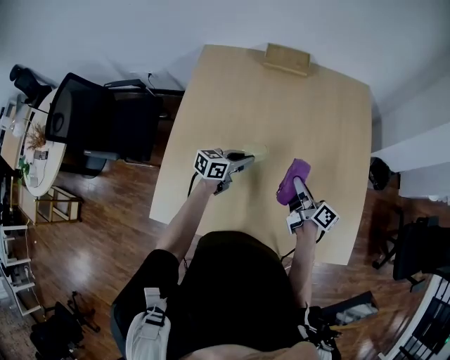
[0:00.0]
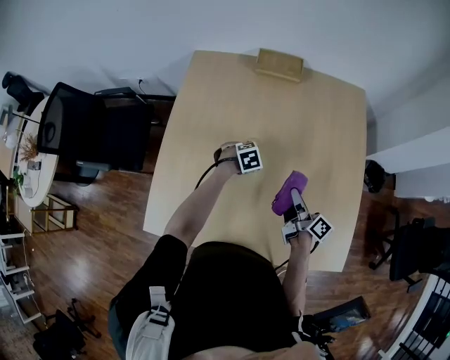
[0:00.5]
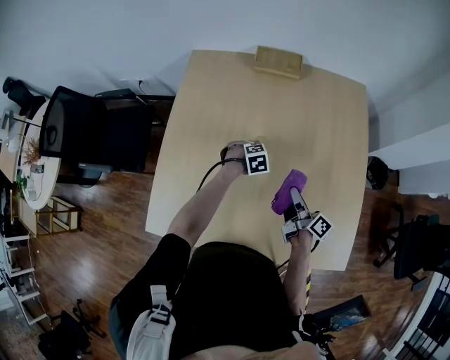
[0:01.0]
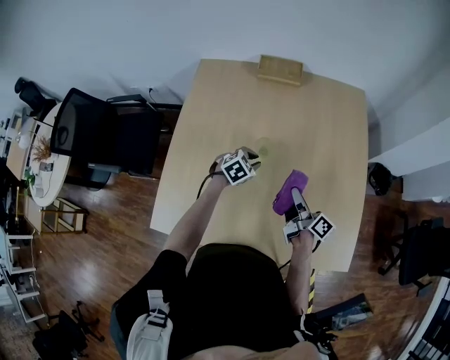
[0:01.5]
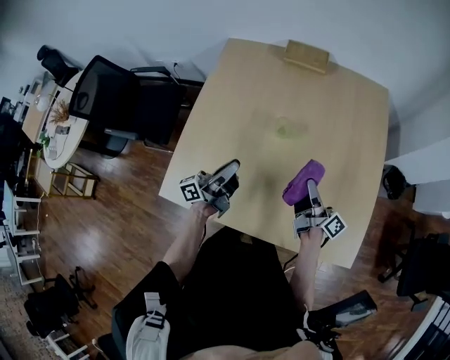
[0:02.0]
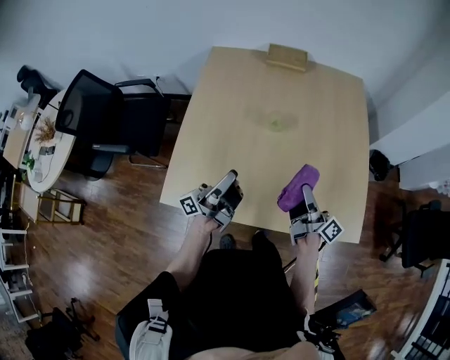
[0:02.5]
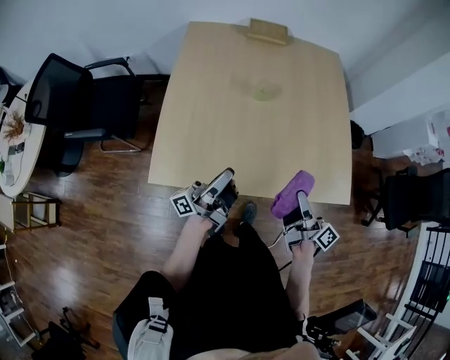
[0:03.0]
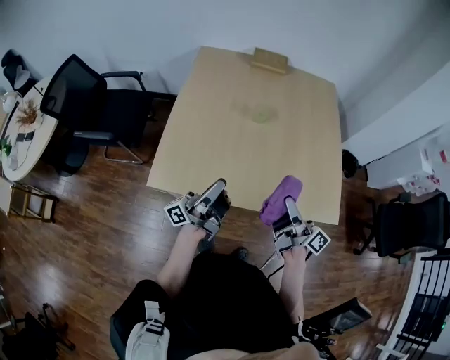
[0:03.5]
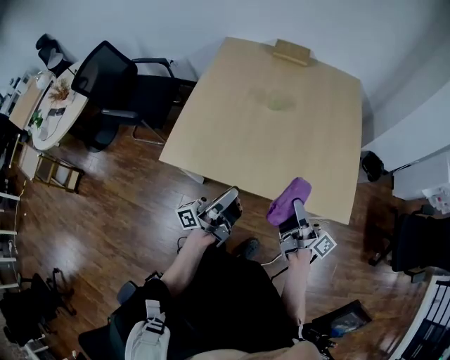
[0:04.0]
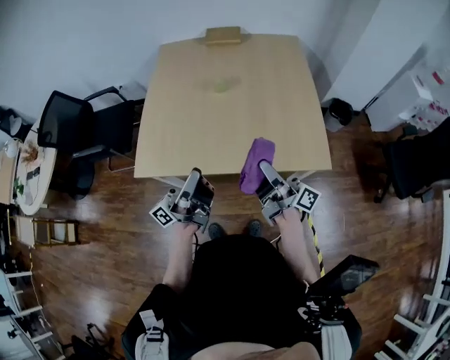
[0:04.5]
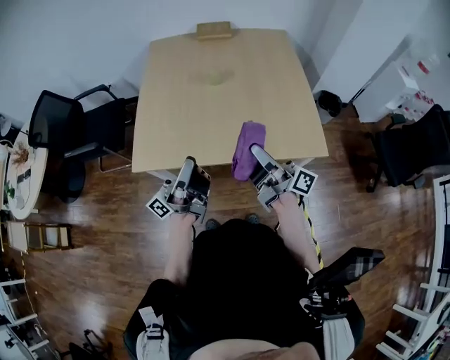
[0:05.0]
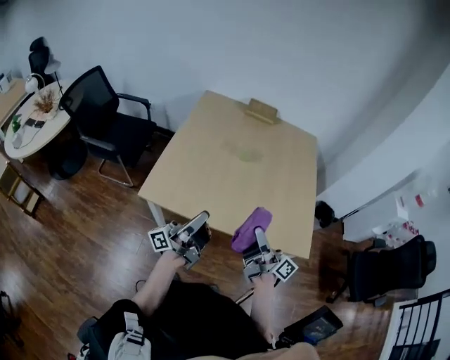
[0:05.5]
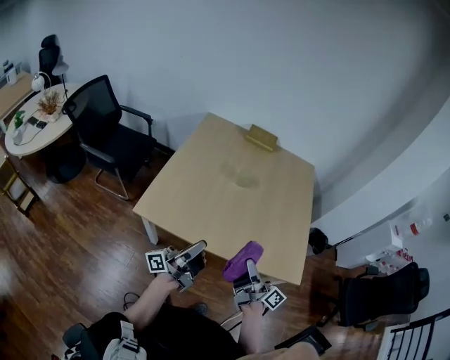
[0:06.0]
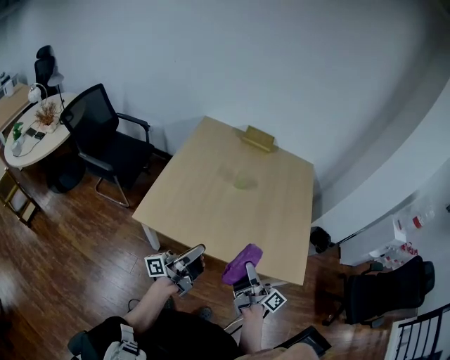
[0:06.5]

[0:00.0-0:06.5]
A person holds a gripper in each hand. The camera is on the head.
0:00.0 to 0:02.0: The right gripper shifts by roughly 5 cm; the left gripper shifts some 15 cm upward and backward, and points its fingers some 40 degrees further upward.
0:02.0 to 0:04.5: The left gripper heads backward, covering some 30 cm, and turns by some 20 degrees, while the right gripper is displaced backward and upward by some 30 cm.
0:04.5 to 0:06.5: The grippers make only small movements.

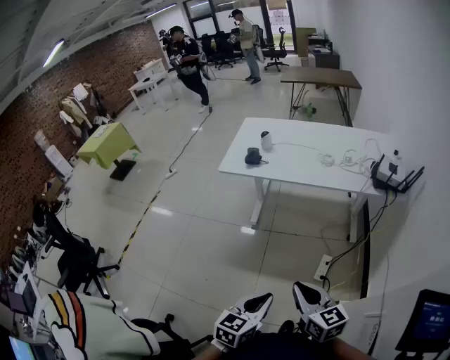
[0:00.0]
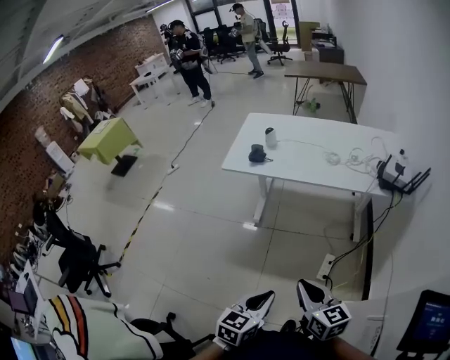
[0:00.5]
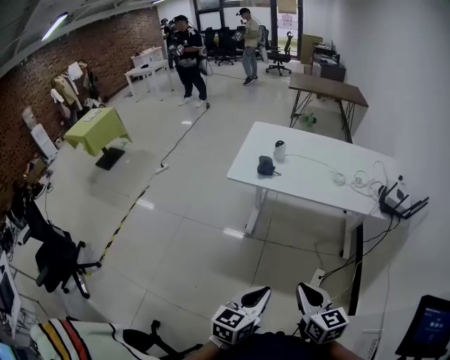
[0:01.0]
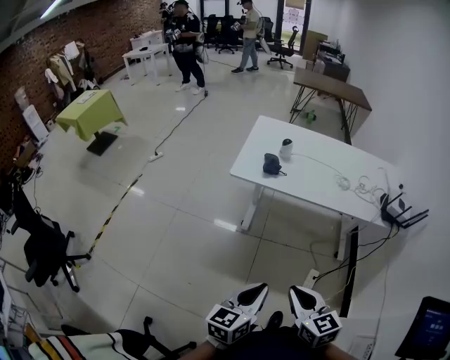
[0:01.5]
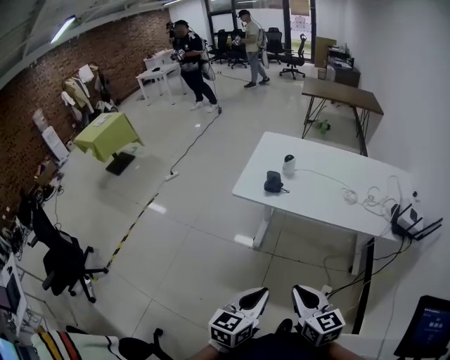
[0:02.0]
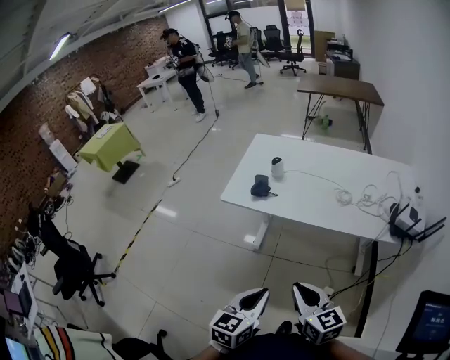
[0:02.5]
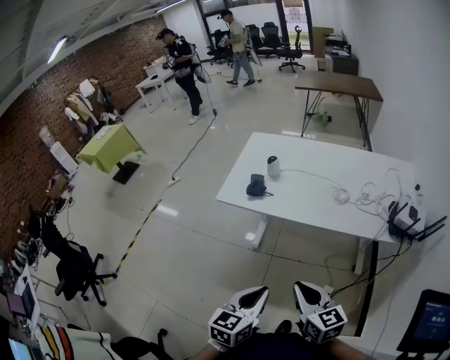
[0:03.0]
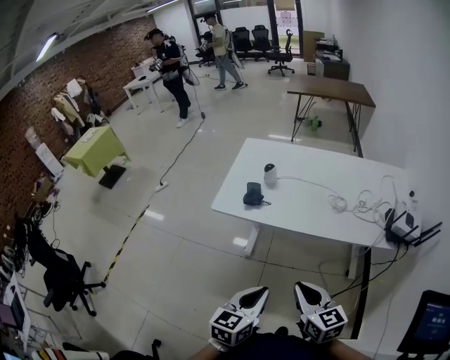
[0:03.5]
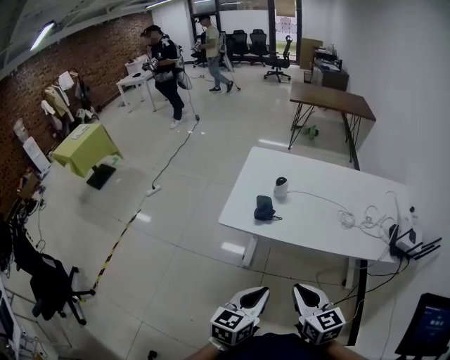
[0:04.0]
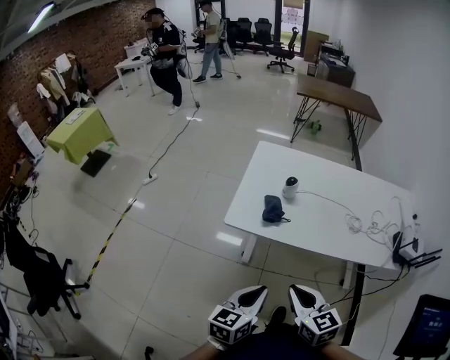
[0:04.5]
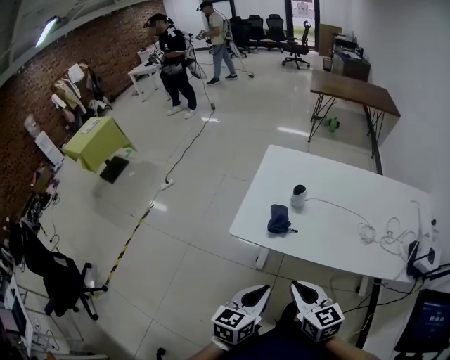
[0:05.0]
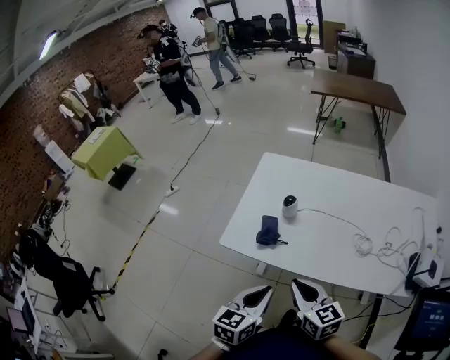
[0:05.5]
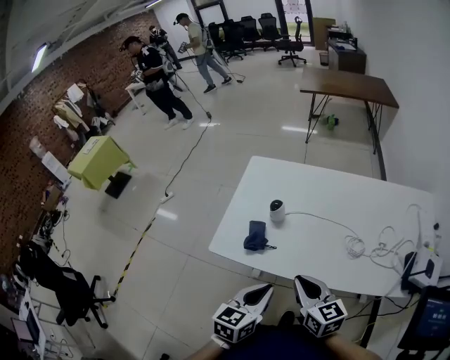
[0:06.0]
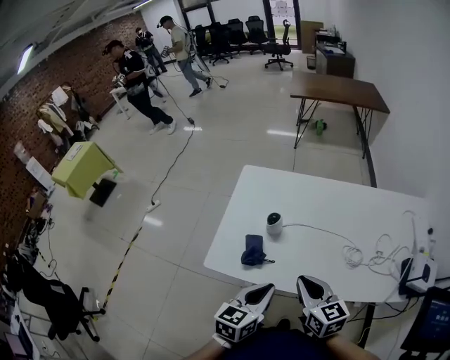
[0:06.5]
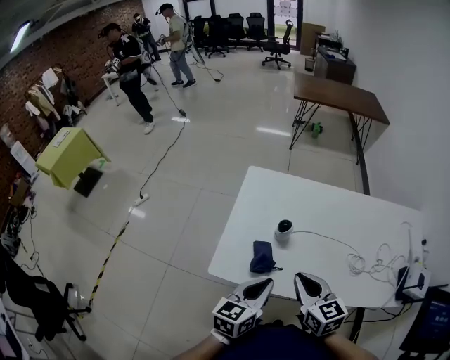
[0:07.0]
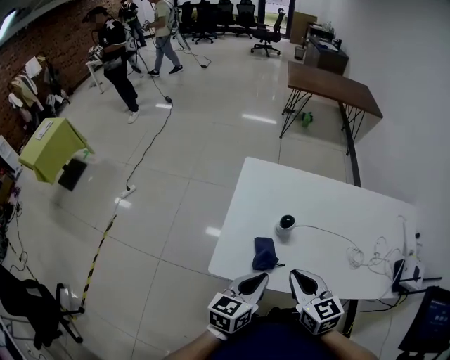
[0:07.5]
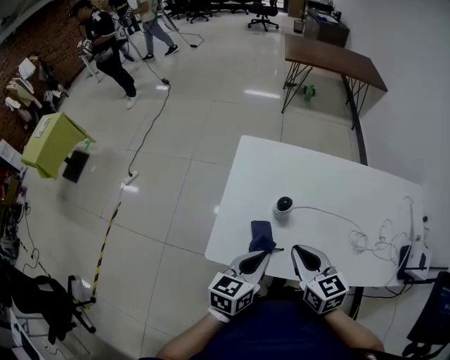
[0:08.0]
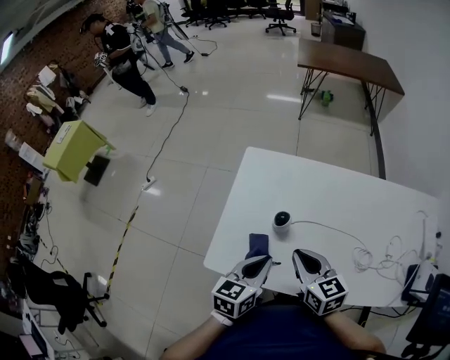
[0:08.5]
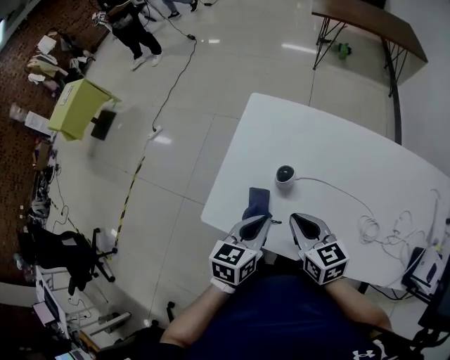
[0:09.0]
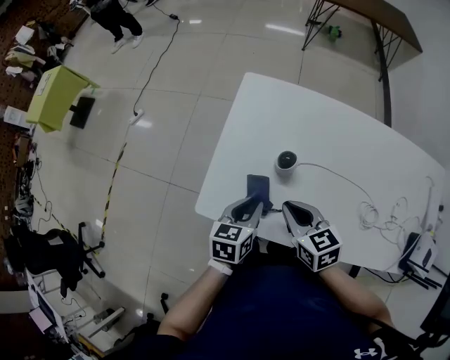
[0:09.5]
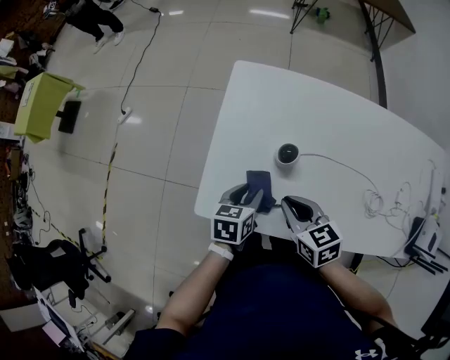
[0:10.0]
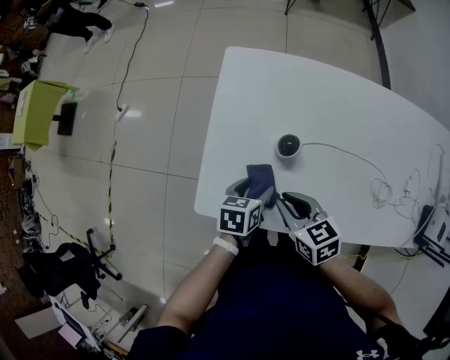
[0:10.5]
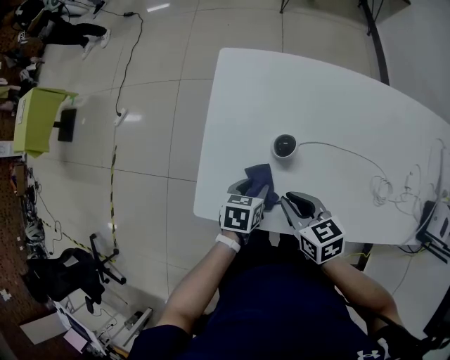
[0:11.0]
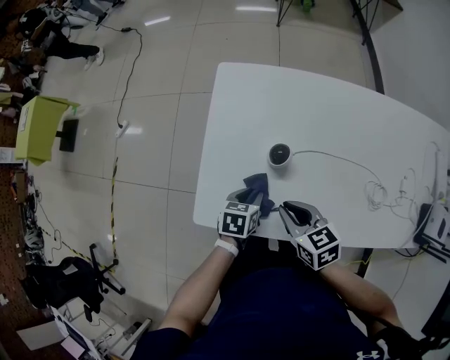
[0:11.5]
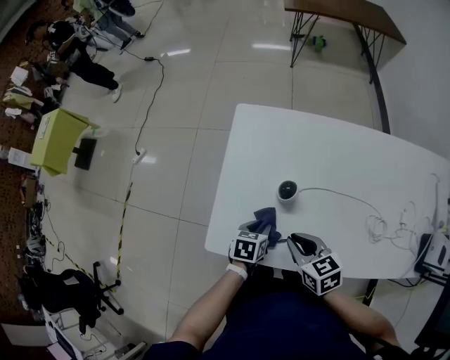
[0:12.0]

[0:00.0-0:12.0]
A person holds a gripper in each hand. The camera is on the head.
0:00.0 to 0:02.0: Both grippers travel together forward and to the left, some 20 cm.
0:02.0 to 0:04.0: The two grippers go some 15 cm forward.
0:04.0 to 0:06.0: The left gripper travels forward and to the right by some 20 cm. Meanwhile the right gripper is displaced forward by some 20 cm.
0:06.0 to 0:08.0: Both grippers travel together forward and to the left, some 15 cm.
0:08.0 to 0:10.0: The right gripper goes approximately 10 cm downward. The left gripper travels downward and forward by some 15 cm, swivels some 30 degrees, and opens up.
0:10.0 to 0:12.0: The left gripper moves downward, some 5 cm, and opens, then closes again.

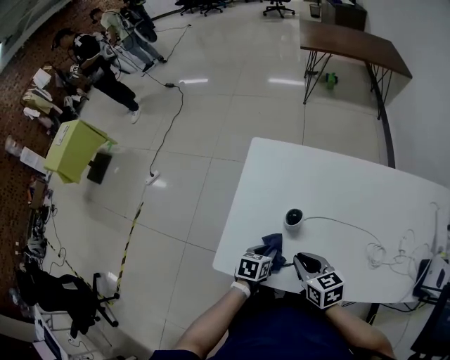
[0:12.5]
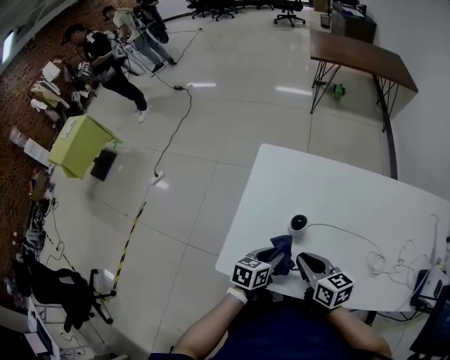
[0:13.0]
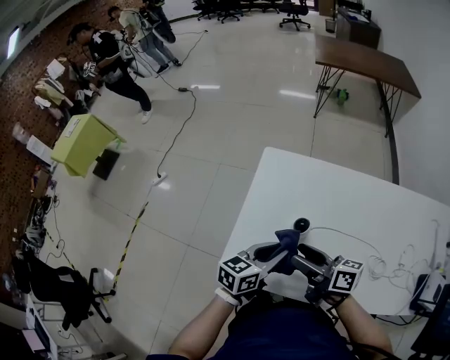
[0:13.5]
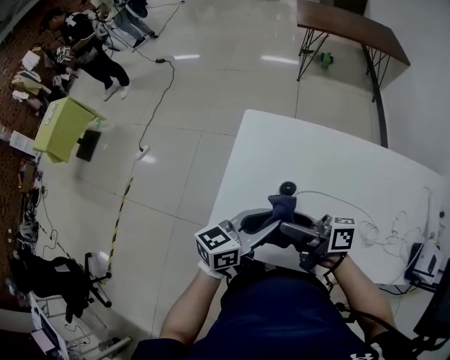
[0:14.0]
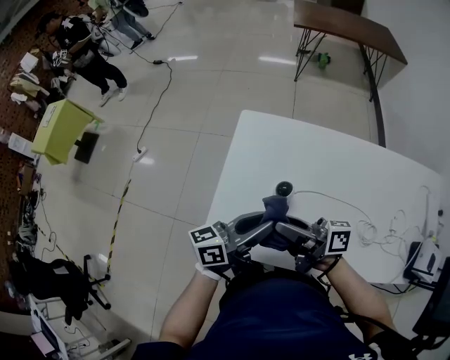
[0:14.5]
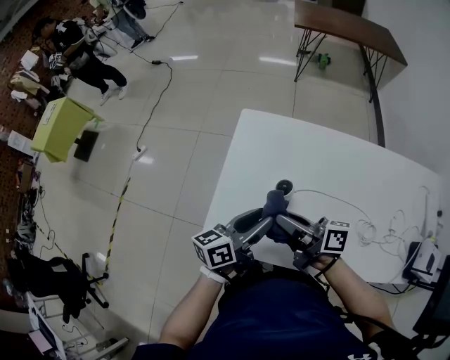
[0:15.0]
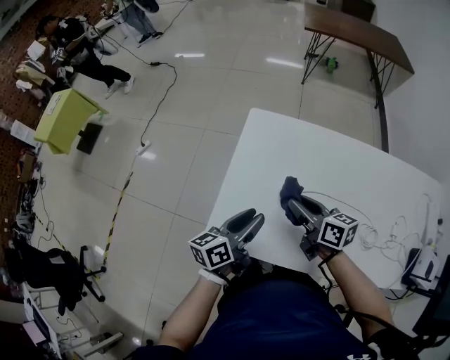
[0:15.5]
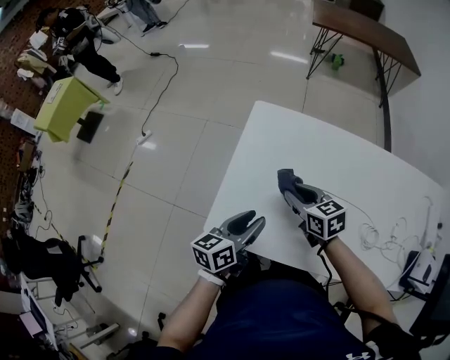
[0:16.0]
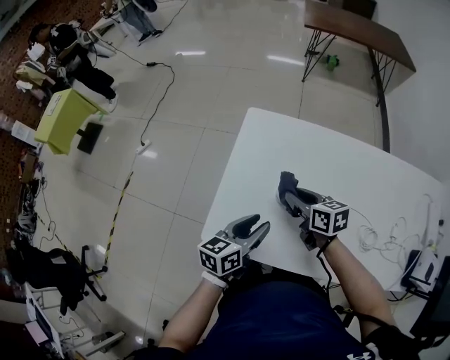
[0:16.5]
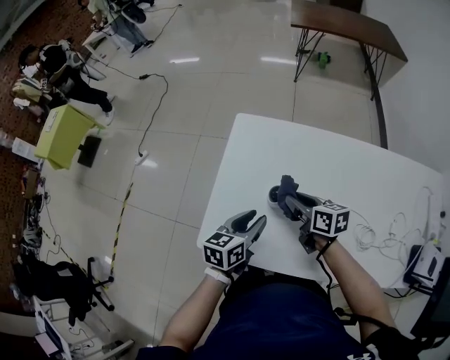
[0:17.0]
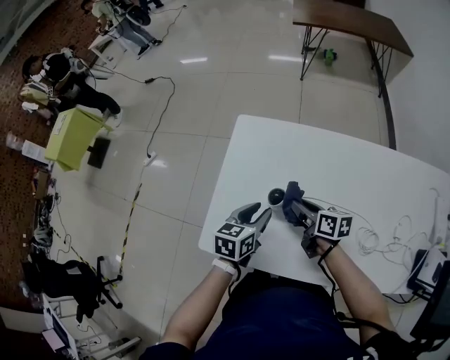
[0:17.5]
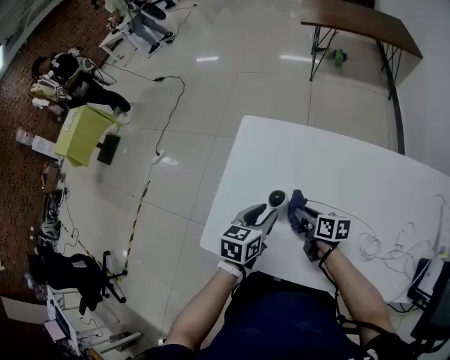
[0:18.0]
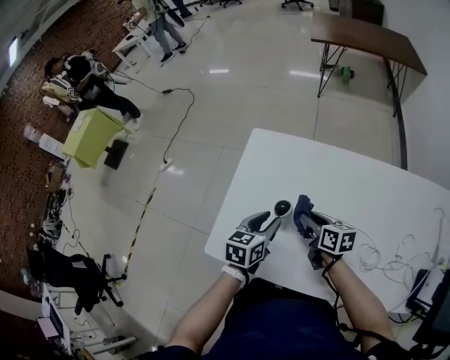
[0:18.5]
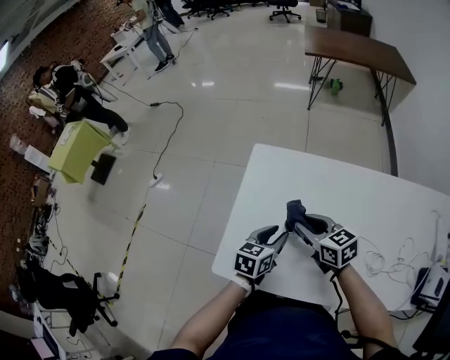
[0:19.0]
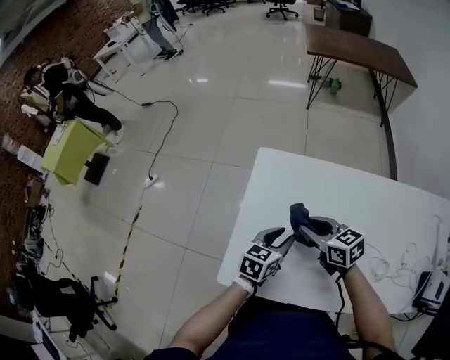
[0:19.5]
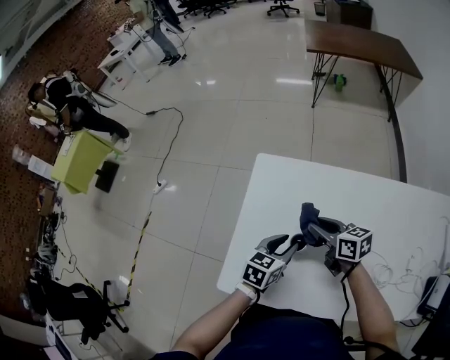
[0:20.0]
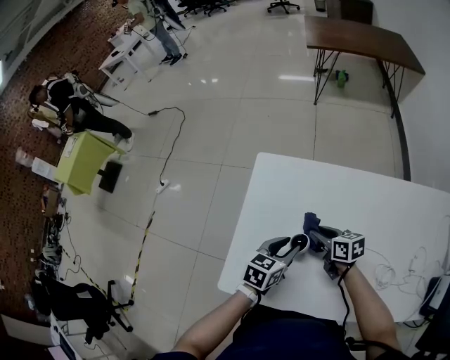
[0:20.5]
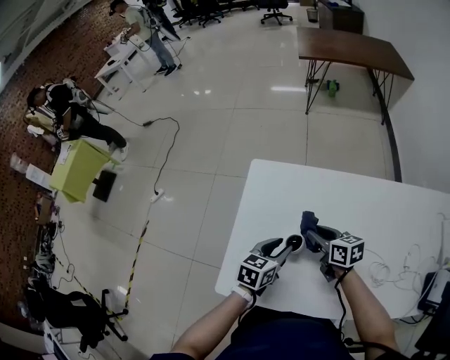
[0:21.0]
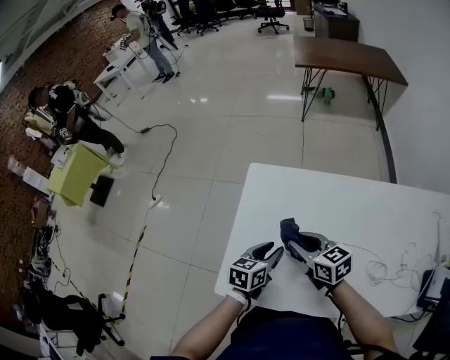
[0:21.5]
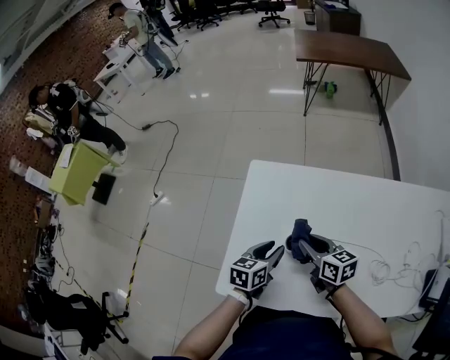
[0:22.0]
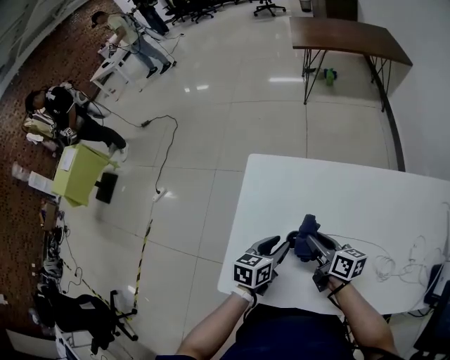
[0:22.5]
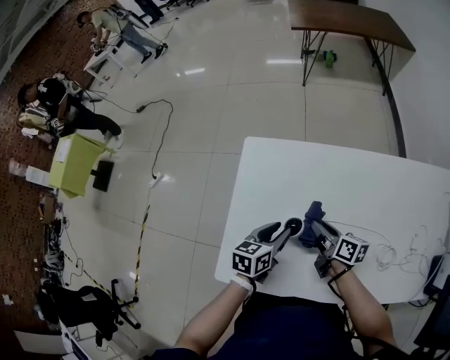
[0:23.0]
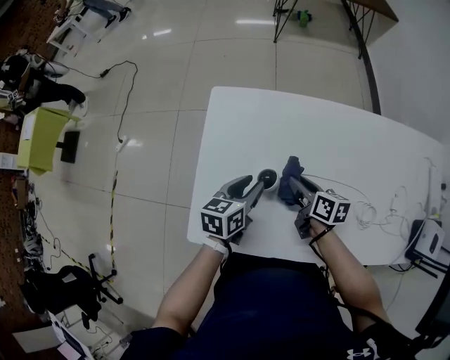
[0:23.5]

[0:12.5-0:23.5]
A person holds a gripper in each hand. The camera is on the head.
0:12.5 to 0:14.5: The right gripper shifts roughly 15 cm upward, tilts its fingers some 50 degrees upward, and opens; the left gripper shifts about 25 cm upward, and tips its fingers upward by about 60 degrees.
0:14.5 to 0:16.0: The right gripper is displaced downward and forward by approximately 15 cm, and points its fingers about 40 degrees further downward. The left gripper goes approximately 10 cm downward and to the left, and turns by about 30 degrees.
0:16.0 to 0:18.0: The right gripper goes about 15 cm downward and to the right, and turns by some 30 degrees; the left gripper shifts some 10 cm to the right and forward, and rotates roughly 30 degrees.
0:18.0 to 0:20.0: The right gripper moves upward and forward, approximately 15 cm.
0:20.0 to 0:21.5: The right gripper shifts roughly 5 cm backward, and moves approximately 10 cm downward and comes back.
0:21.5 to 0:23.5: The right gripper travels downward and to the right by roughly 15 cm, and swivels some 40 degrees.
